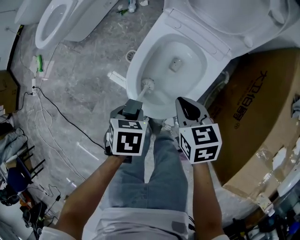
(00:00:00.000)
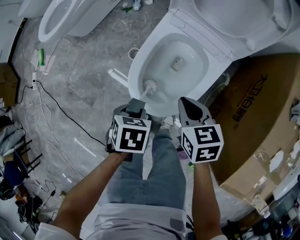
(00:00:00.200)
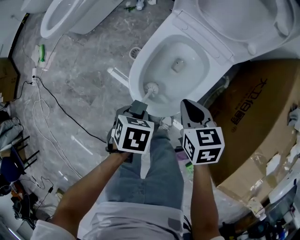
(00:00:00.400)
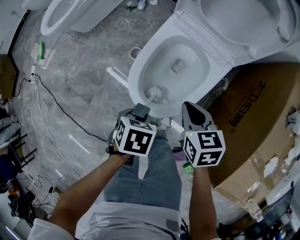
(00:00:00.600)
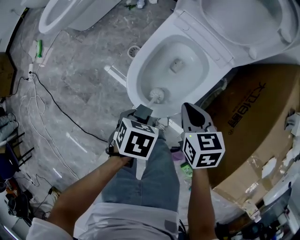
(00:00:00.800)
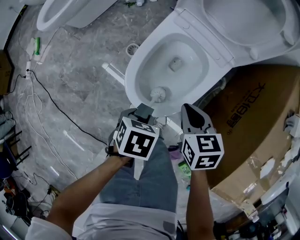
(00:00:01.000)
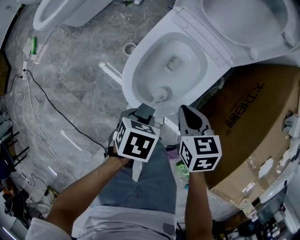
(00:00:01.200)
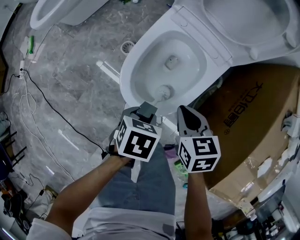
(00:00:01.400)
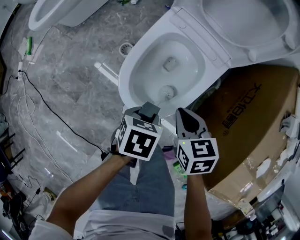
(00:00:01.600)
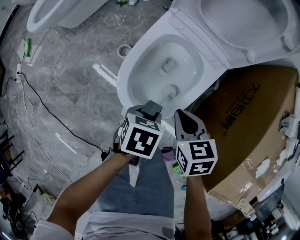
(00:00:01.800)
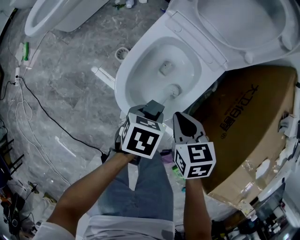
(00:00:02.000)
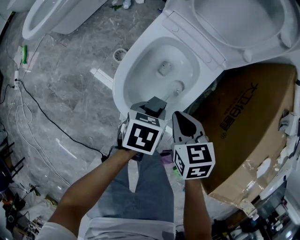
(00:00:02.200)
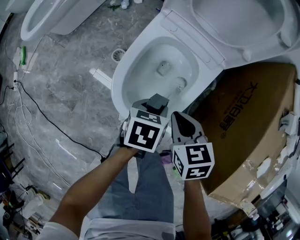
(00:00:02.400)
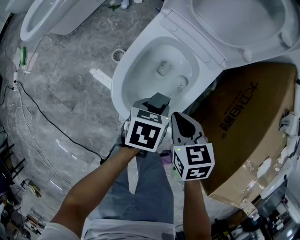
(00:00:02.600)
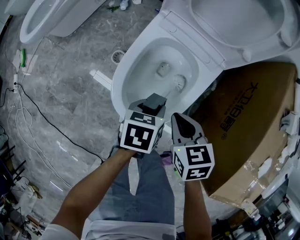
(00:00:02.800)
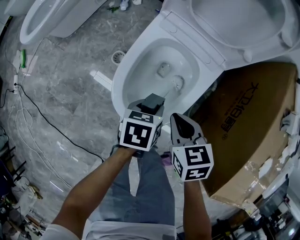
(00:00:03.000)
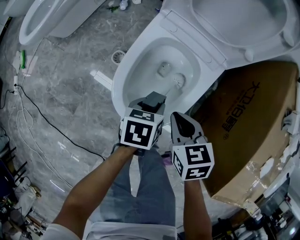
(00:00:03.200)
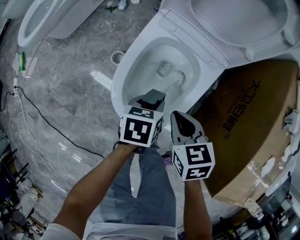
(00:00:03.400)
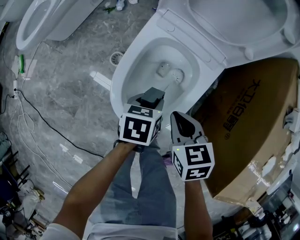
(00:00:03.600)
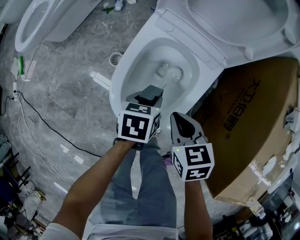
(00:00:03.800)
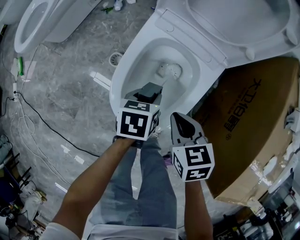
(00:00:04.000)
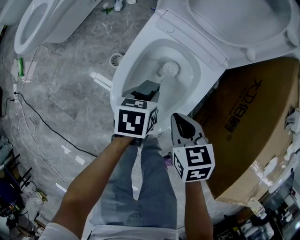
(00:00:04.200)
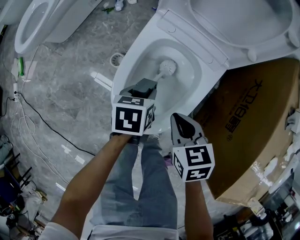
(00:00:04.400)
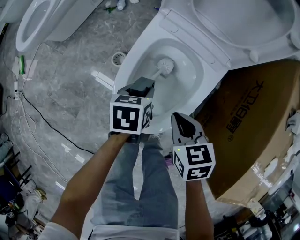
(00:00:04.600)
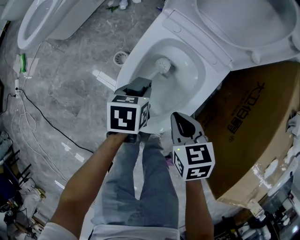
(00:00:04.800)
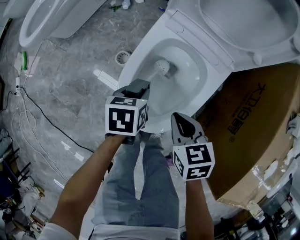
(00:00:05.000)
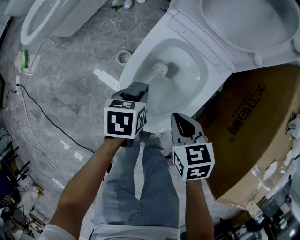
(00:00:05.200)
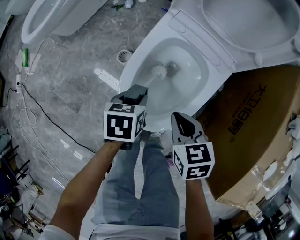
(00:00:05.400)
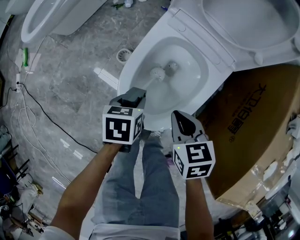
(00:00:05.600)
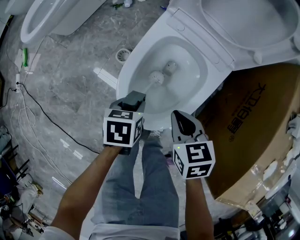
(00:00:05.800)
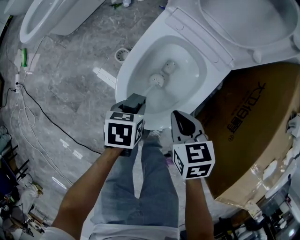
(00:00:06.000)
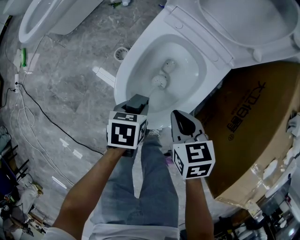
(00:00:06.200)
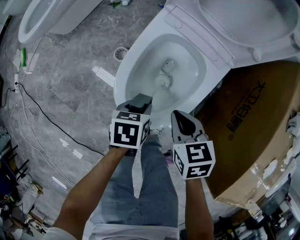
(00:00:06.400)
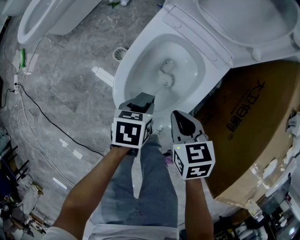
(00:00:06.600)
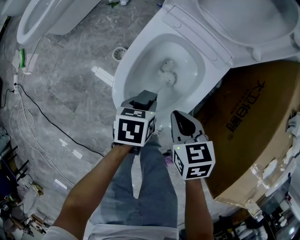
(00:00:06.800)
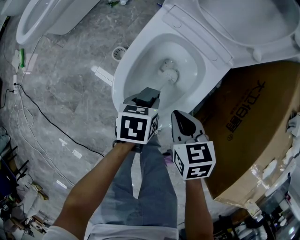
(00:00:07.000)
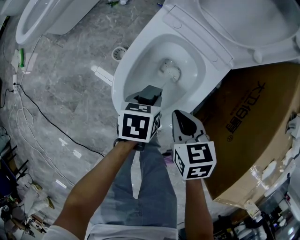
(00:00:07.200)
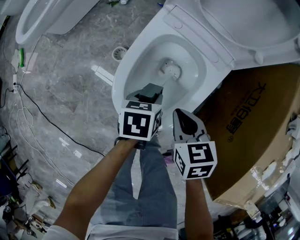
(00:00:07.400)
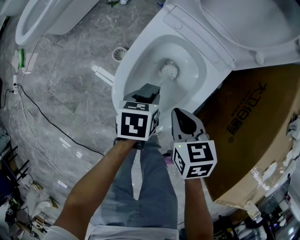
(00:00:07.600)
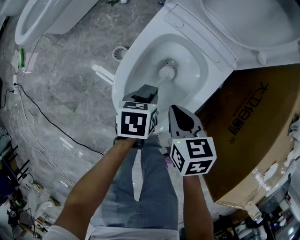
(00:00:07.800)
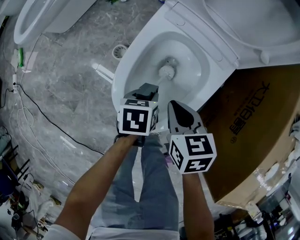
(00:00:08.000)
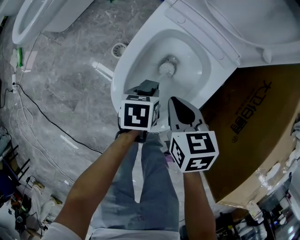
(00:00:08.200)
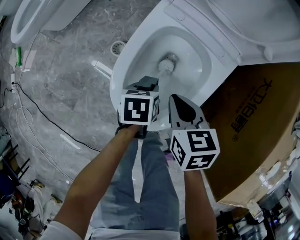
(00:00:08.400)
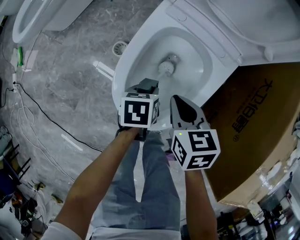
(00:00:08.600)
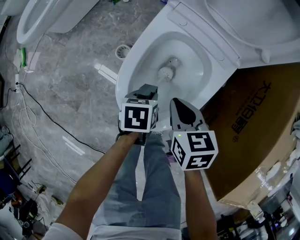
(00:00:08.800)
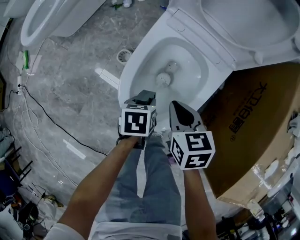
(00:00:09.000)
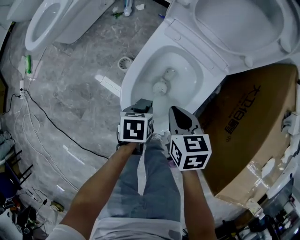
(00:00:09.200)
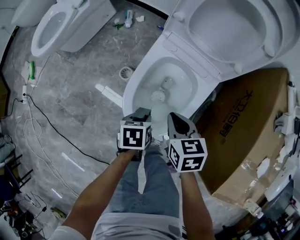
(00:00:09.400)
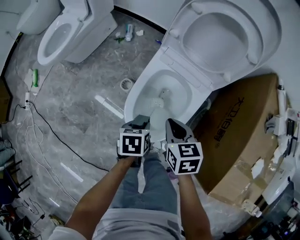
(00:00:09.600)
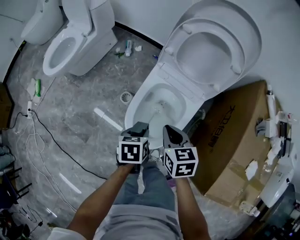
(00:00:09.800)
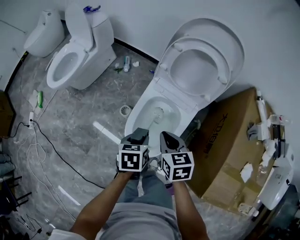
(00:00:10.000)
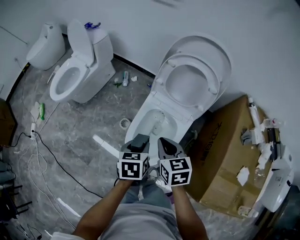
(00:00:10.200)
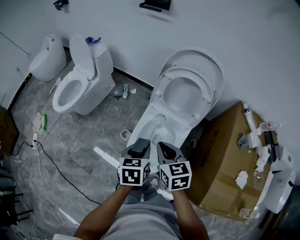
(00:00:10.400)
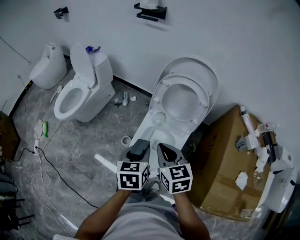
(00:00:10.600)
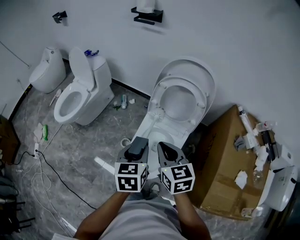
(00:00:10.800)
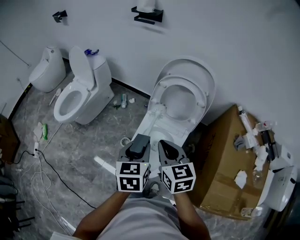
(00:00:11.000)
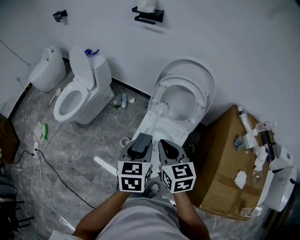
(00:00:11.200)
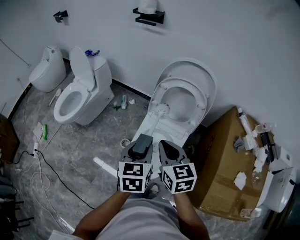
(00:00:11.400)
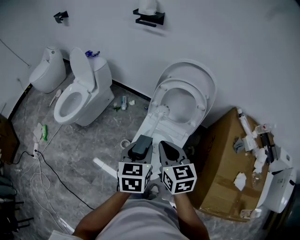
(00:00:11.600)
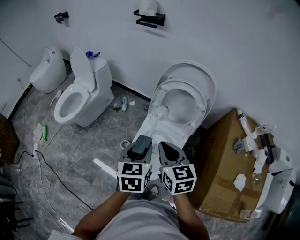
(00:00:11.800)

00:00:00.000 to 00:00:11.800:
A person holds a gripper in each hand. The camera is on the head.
00:00:00.000 to 00:00:01.400: The left gripper changes place by about 5 cm.
00:00:01.400 to 00:00:03.000: The left gripper is displaced forward by some 10 cm.
00:00:03.000 to 00:00:04.400: The left gripper travels forward by approximately 5 cm.
00:00:04.400 to 00:00:06.000: The left gripper travels backward by some 10 cm.
00:00:06.000 to 00:00:07.400: The left gripper shifts roughly 10 cm forward and to the right.
00:00:07.400 to 00:00:08.800: The left gripper moves some 5 cm.
00:00:08.800 to 00:00:10.400: The grippers both shift upward by some 35 cm. The left gripper turns by about 30 degrees.
00:00:10.400 to 00:00:11.800: The two grippers go approximately 10 cm upward.

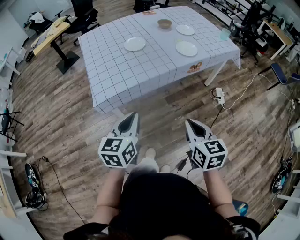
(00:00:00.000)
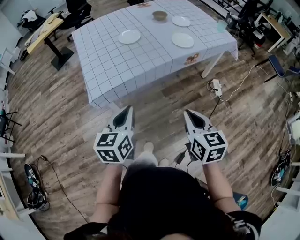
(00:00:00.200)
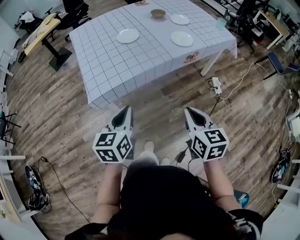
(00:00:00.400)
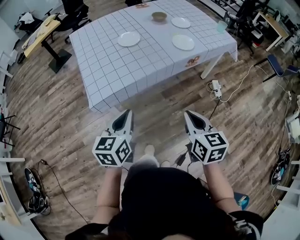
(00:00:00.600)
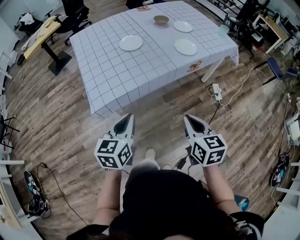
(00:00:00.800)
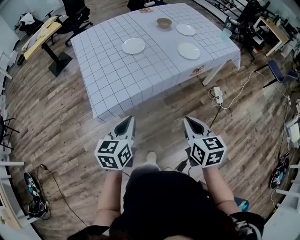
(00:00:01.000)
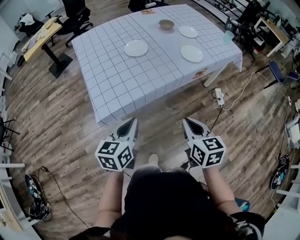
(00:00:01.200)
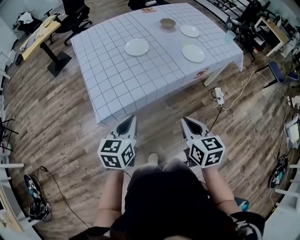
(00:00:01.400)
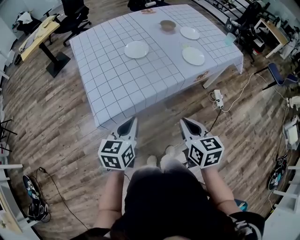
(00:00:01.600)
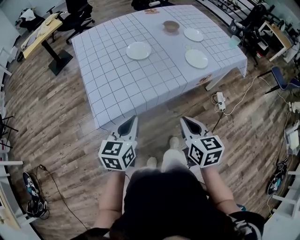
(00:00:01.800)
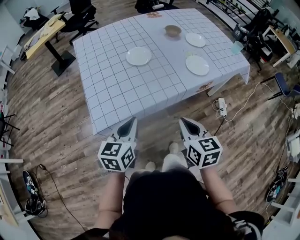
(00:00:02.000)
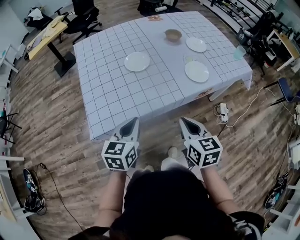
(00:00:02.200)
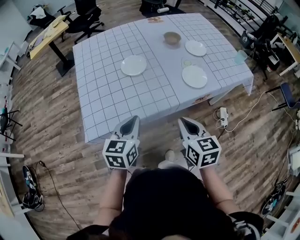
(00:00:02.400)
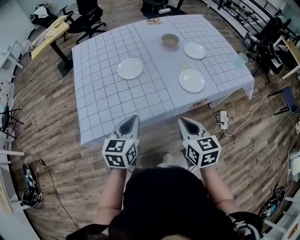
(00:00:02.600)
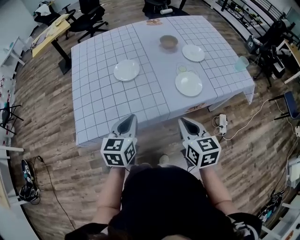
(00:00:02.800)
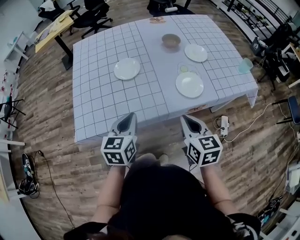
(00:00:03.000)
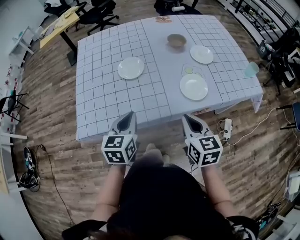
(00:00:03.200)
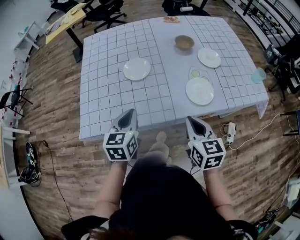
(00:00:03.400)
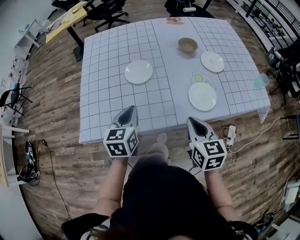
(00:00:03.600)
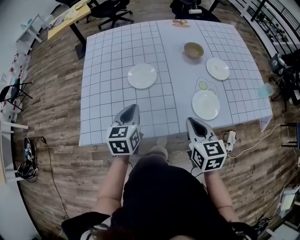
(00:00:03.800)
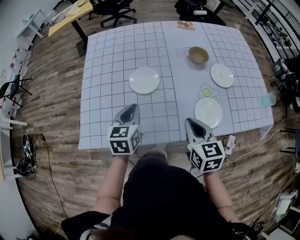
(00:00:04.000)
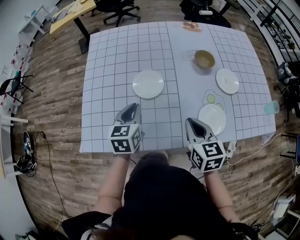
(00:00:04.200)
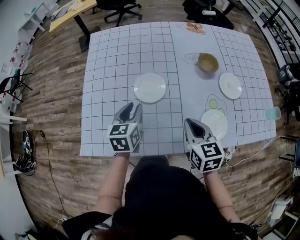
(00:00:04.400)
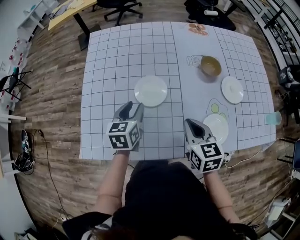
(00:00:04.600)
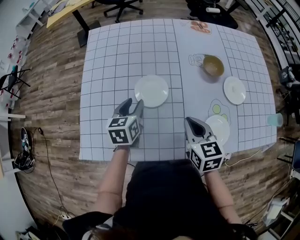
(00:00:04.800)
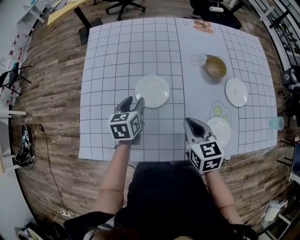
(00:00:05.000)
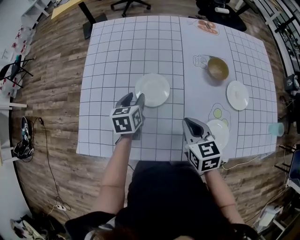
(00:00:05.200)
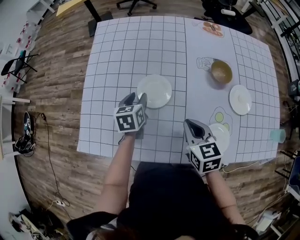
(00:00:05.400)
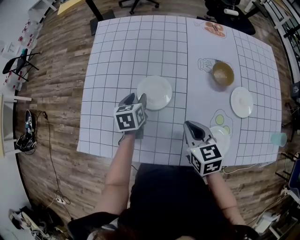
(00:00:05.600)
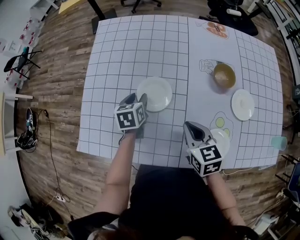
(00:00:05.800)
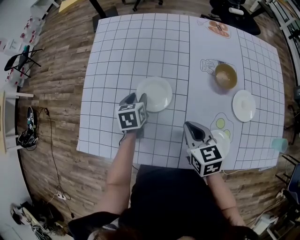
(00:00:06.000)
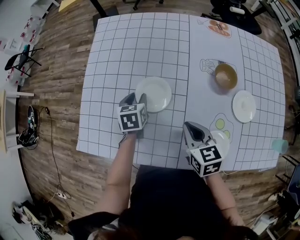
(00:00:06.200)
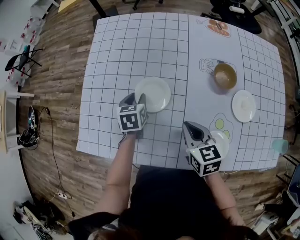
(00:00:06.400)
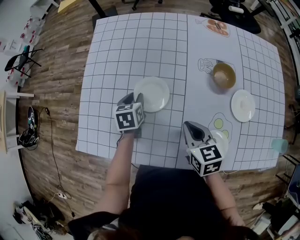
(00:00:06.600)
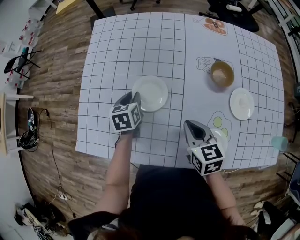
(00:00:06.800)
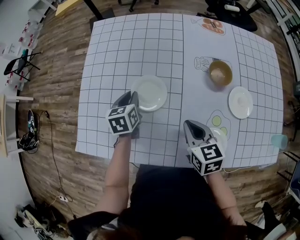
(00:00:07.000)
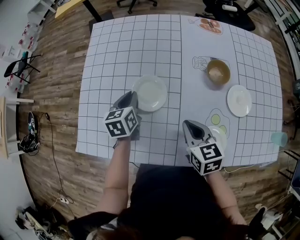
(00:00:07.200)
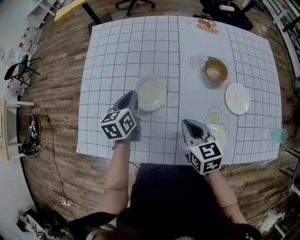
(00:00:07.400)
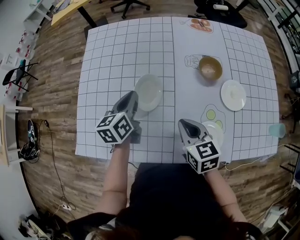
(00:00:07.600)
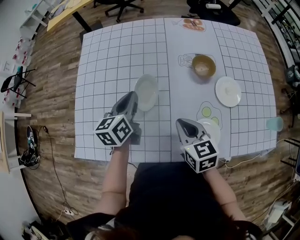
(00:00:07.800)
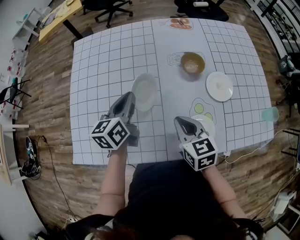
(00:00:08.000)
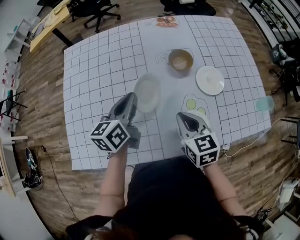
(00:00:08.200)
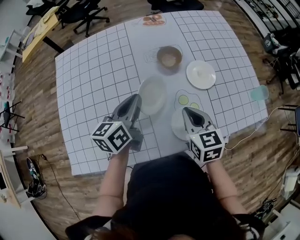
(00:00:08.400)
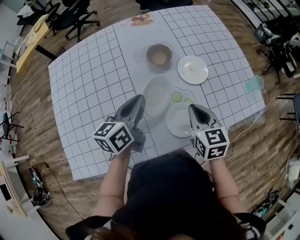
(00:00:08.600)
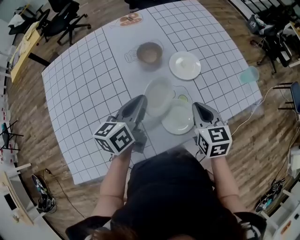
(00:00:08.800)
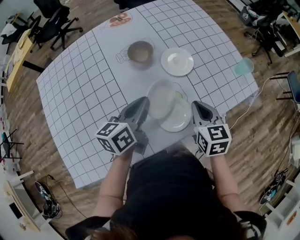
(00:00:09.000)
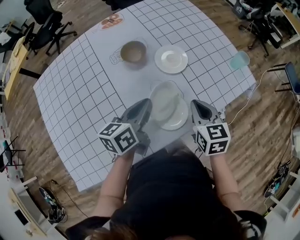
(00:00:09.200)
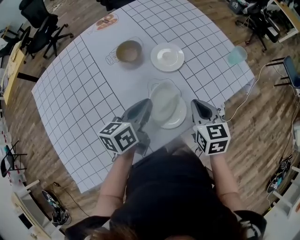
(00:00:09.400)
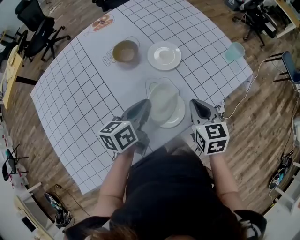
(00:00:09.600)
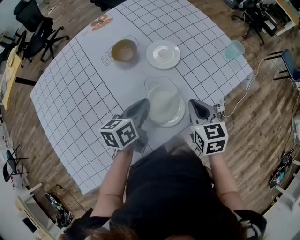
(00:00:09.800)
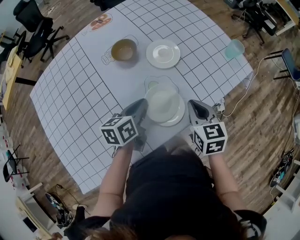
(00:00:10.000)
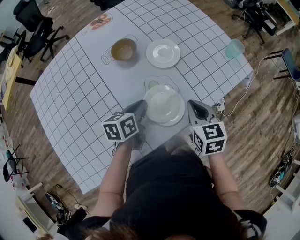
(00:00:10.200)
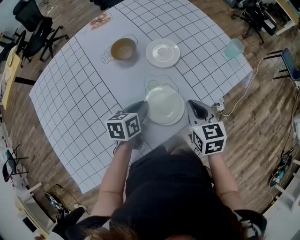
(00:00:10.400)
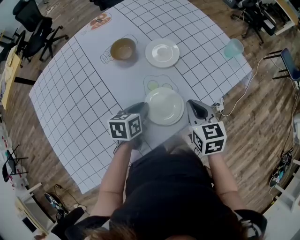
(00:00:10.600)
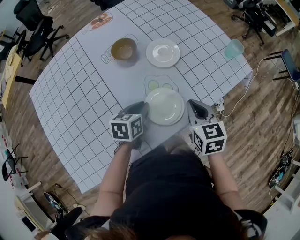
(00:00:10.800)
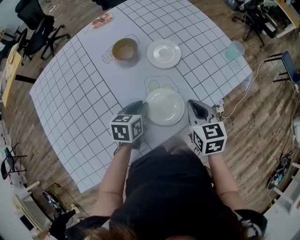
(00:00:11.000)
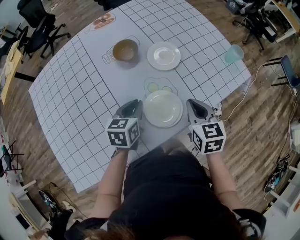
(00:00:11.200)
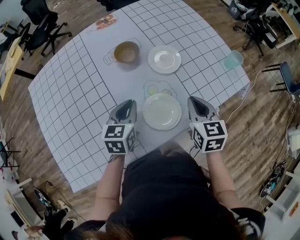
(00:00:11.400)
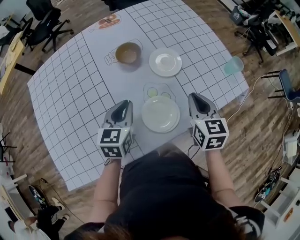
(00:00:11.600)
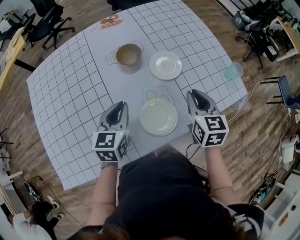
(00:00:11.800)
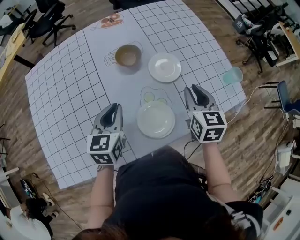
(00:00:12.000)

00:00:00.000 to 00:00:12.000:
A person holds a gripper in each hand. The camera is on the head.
00:00:00.000 to 00:00:01.600: Both grippers move forward and to the left, about 15 cm.
00:00:01.600 to 00:00:03.000: Both grippers travel together forward and to the right, about 25 cm.
00:00:03.000 to 00:00:04.400: Both grippers move forward, roughly 20 cm. The left gripper opens up.
00:00:04.400 to 00:00:06.000: The left gripper heads forward and downward, covering some 15 cm, and rotates some 20 degrees. The right gripper travels forward by approximately 10 cm.
00:00:06.000 to 00:00:07.600: The left gripper heads upward, covering approximately 10 cm, swivels approximately 30 degrees, and closes up.
00:00:07.600 to 00:00:09.000: The right gripper shifts by some 25 cm, and turns by some 40 degrees. The left gripper moves some 25 cm, and changes its angle by some 40 degrees.
00:00:09.000 to 00:00:10.400: The left gripper travels downward by approximately 10 cm, and swivels about 30 degrees.
00:00:10.400 to 00:00:12.000: The left gripper shifts about 10 cm upward and to the left, and swivels some 30 degrees, while the right gripper is displaced forward and upward by approximately 15 cm.
